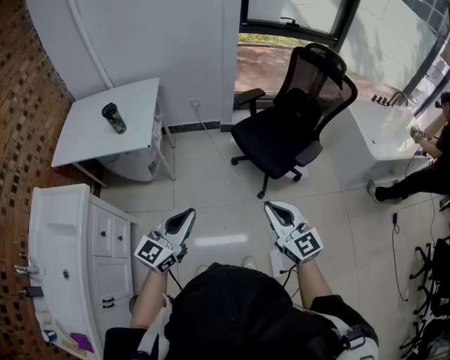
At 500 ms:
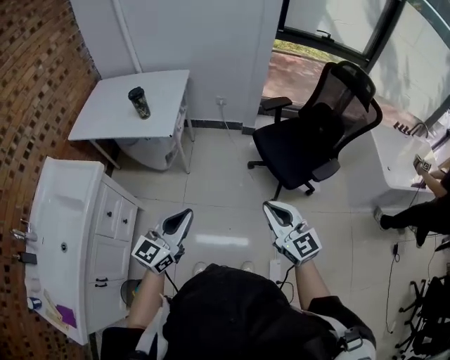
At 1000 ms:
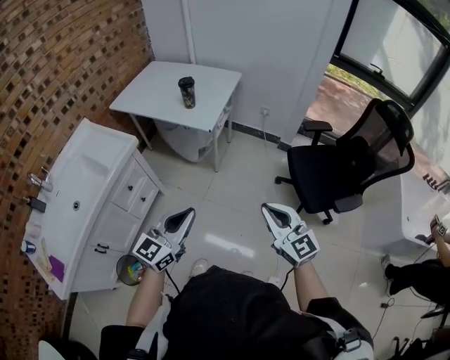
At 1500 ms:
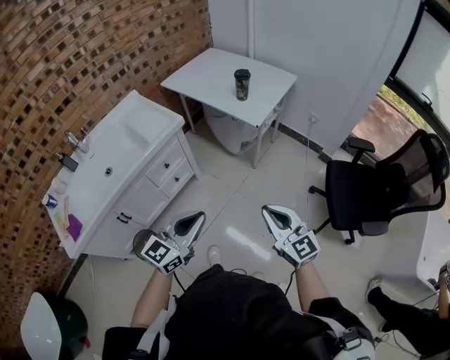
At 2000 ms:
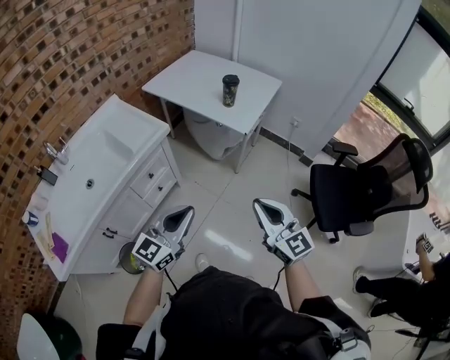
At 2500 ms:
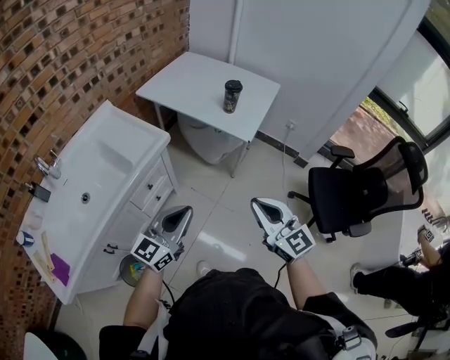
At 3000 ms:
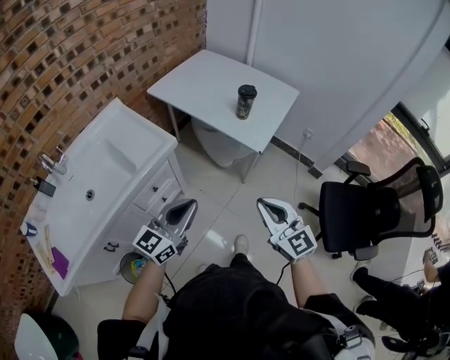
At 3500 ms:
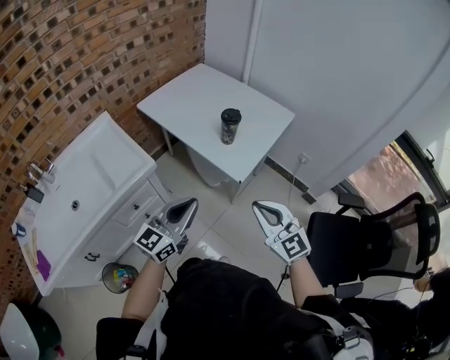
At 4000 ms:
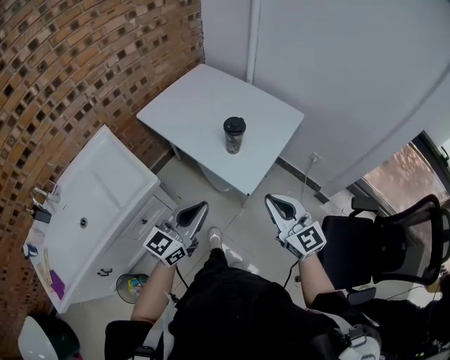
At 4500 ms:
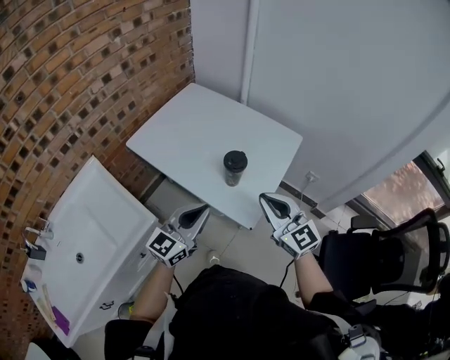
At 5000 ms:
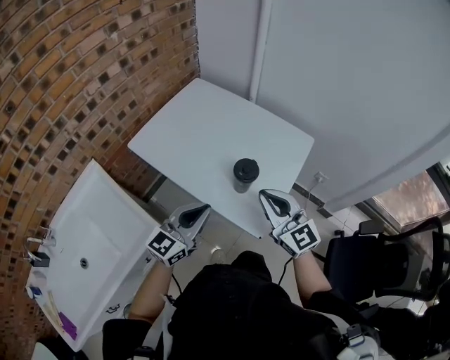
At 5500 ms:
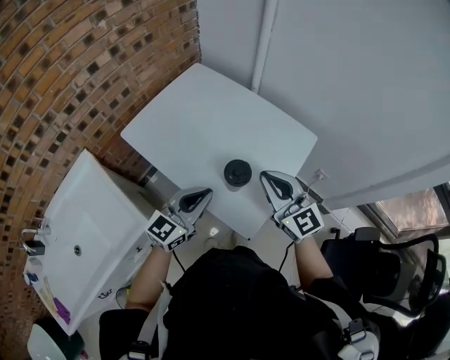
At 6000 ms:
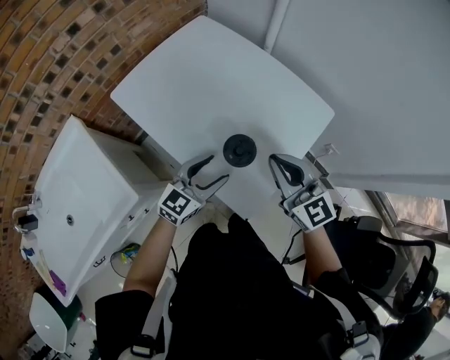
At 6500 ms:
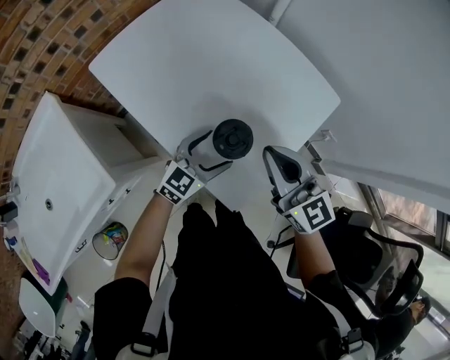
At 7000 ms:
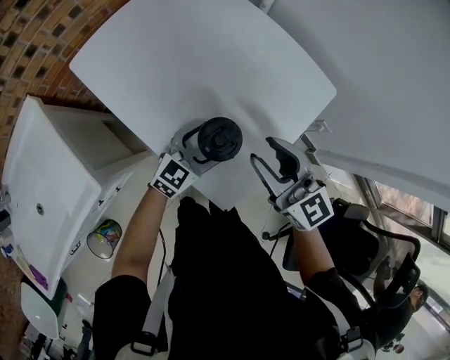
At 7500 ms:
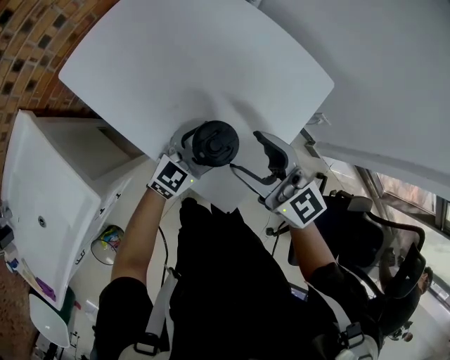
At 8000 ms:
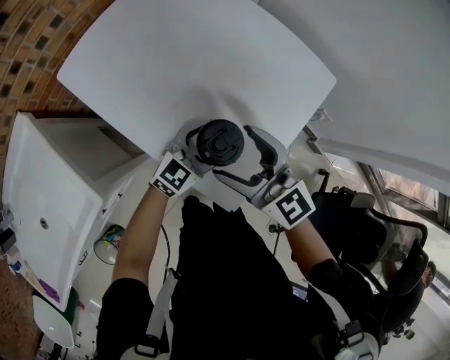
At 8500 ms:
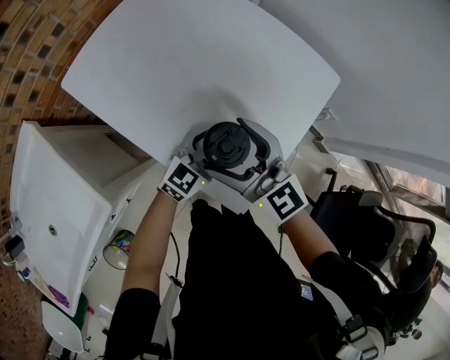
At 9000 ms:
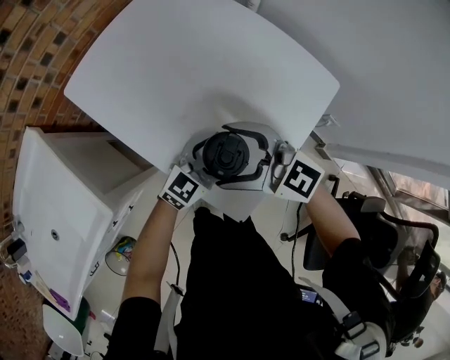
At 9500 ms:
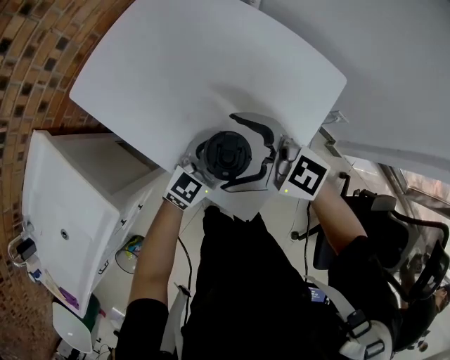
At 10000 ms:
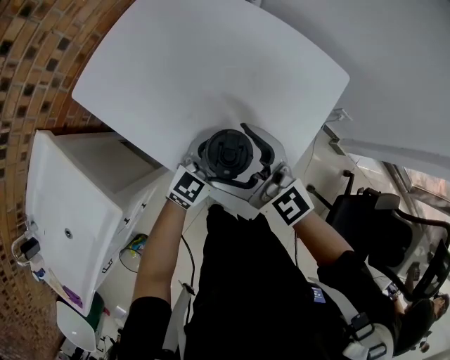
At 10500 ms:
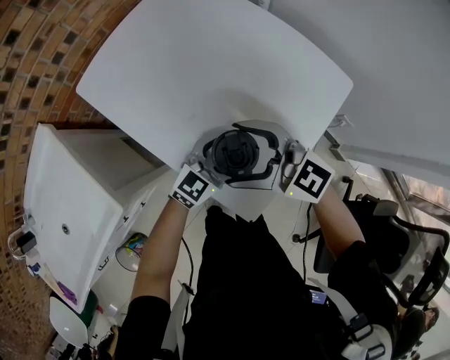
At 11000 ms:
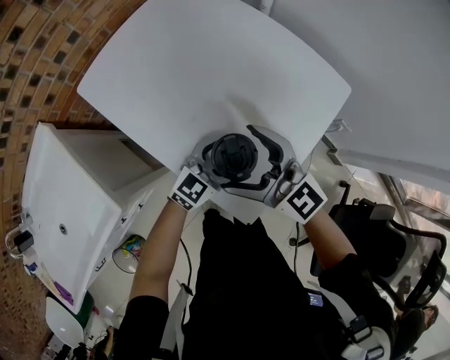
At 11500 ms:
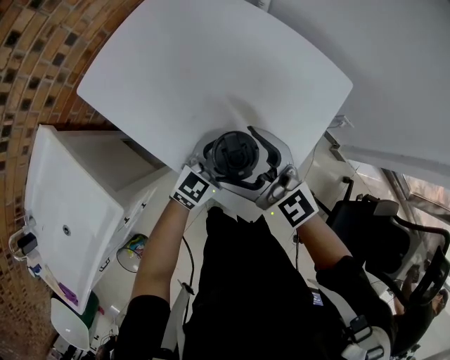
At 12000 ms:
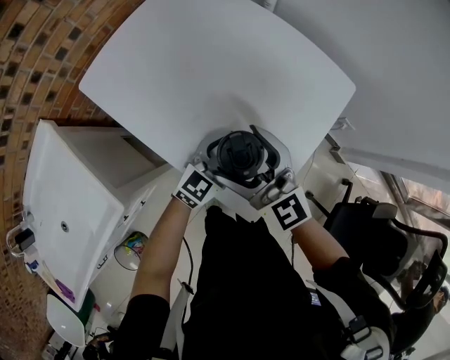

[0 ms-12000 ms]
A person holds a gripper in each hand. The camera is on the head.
0 ms to 2000 ms: The right gripper shifts by roughly 25 cm, and changes its angle by approximately 40 degrees, while the left gripper changes place by some 20 cm, and turns by approximately 40 degrees.
2000 ms to 4000 ms: Both grippers move forward, some 35 cm.
4000 ms to 6000 ms: The right gripper goes approximately 30 cm forward. Meanwhile the left gripper shifts about 30 cm forward and downward, and opens its fingers.
6000 ms to 8000 ms: The left gripper moves downward and to the right, approximately 10 cm. The right gripper shifts about 10 cm downward and to the left, and opens.

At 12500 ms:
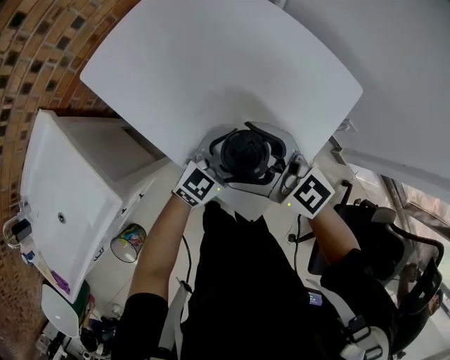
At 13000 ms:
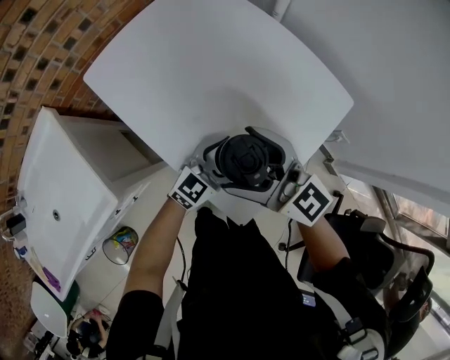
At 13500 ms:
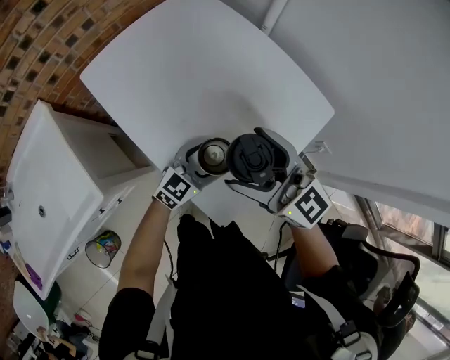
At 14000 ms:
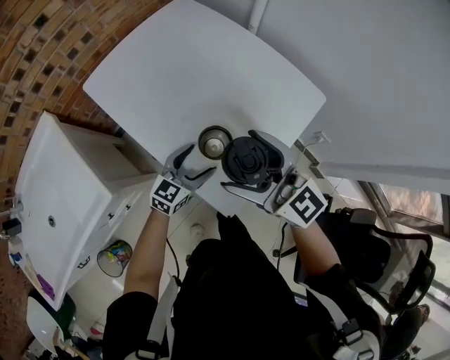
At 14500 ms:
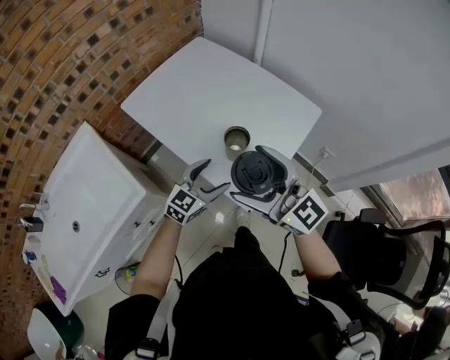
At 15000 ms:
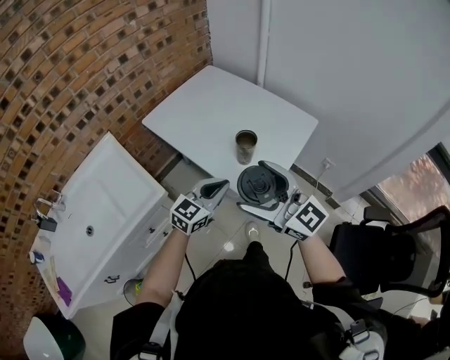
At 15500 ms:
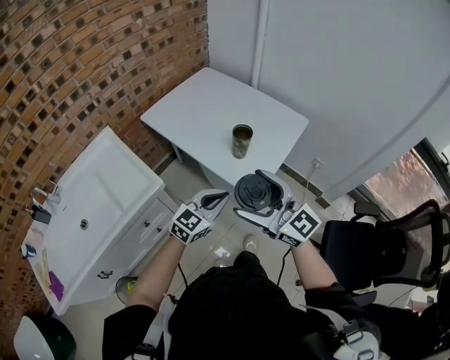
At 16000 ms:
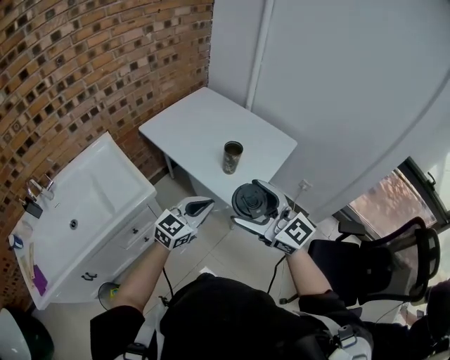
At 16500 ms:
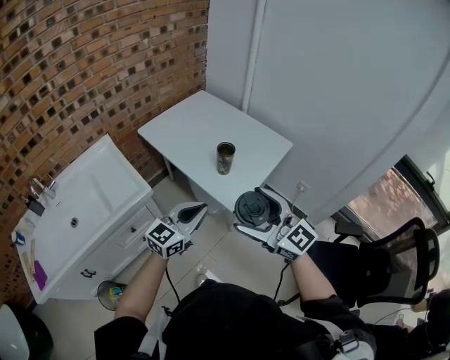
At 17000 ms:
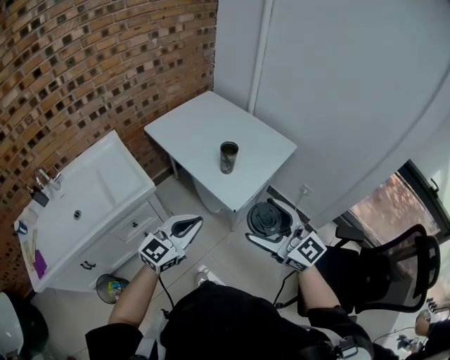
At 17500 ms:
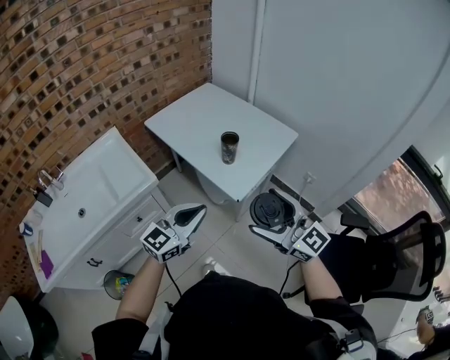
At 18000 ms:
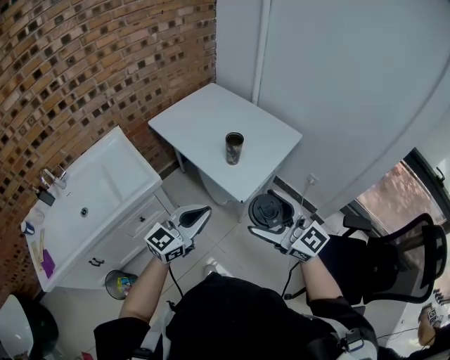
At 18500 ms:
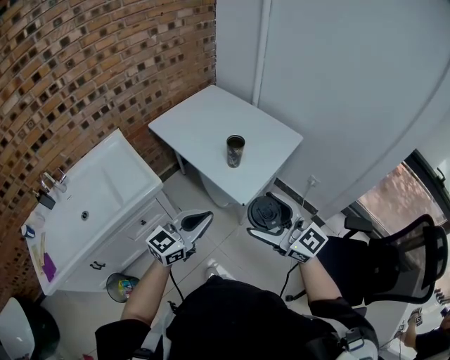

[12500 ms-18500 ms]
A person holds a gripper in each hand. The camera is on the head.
12500 ms to 14500 ms: The right gripper moves upward and backward, about 20 cm, while the left gripper travels backward, upward and to the left by about 15 cm.
14500 ms to 16500 ms: The left gripper is displaced backward and upward by approximately 25 cm, and closes; the right gripper heads backward, covering roughly 20 cm.
16500 ms to 18500 ms: The left gripper heads backward, covering roughly 5 cm.

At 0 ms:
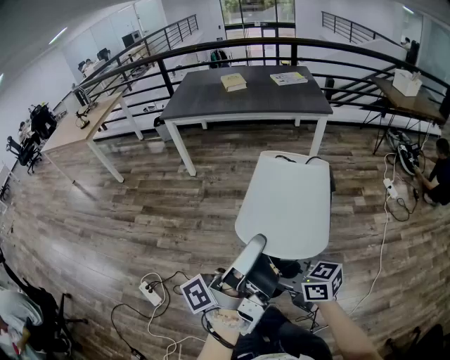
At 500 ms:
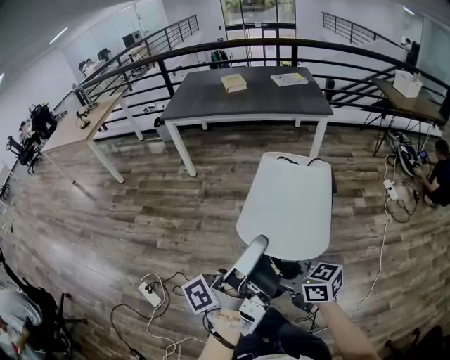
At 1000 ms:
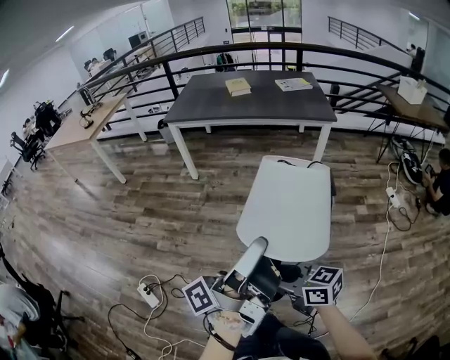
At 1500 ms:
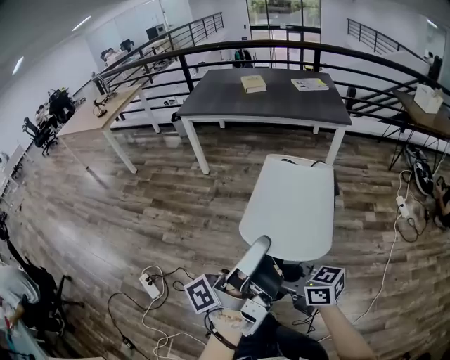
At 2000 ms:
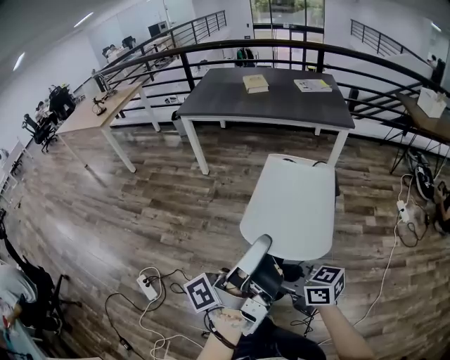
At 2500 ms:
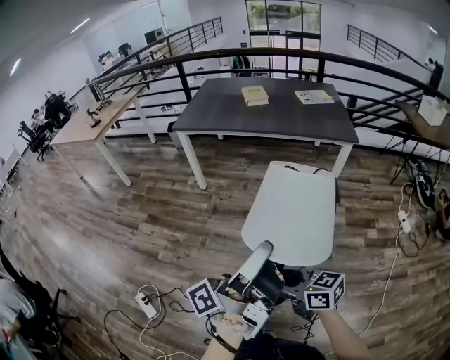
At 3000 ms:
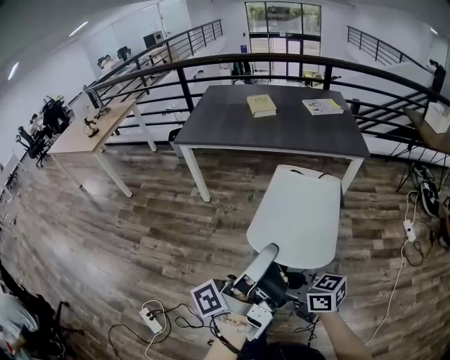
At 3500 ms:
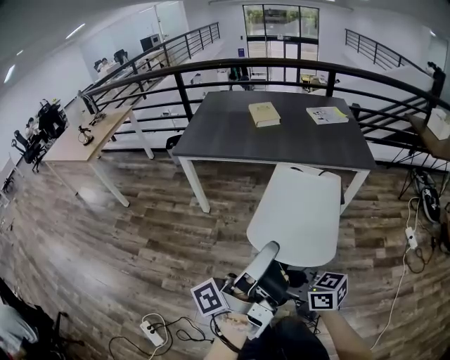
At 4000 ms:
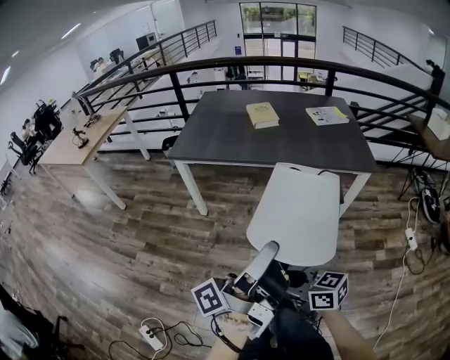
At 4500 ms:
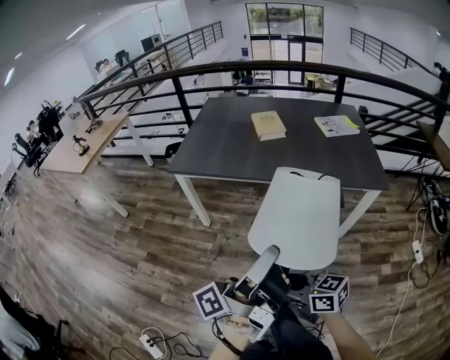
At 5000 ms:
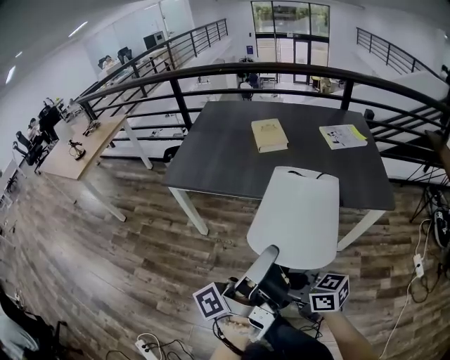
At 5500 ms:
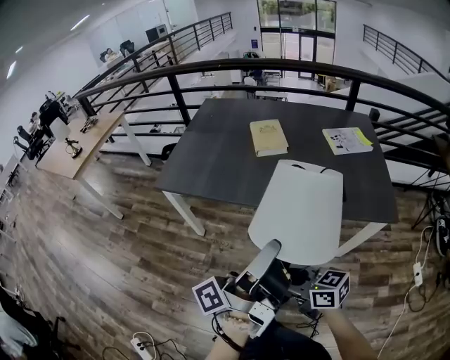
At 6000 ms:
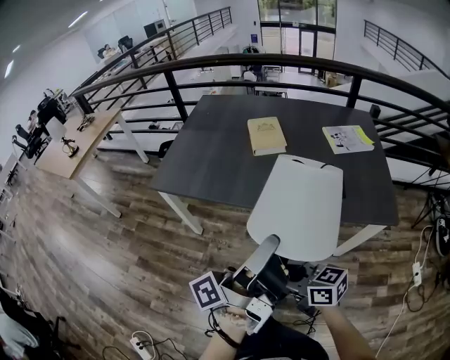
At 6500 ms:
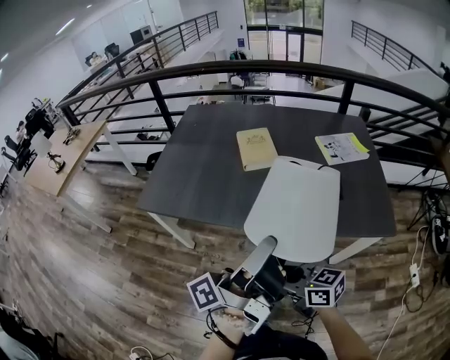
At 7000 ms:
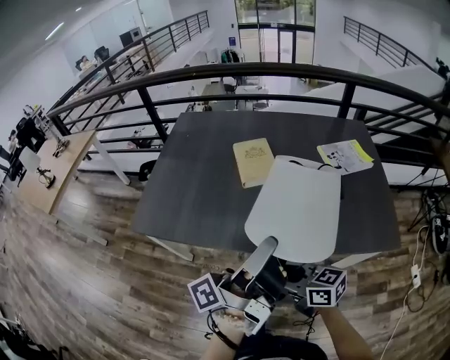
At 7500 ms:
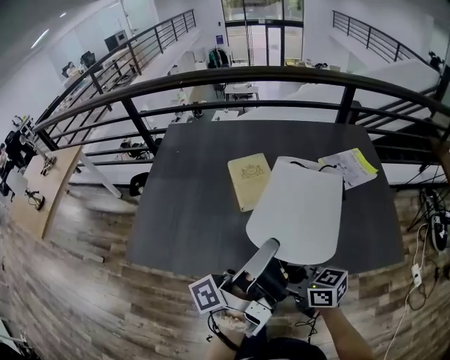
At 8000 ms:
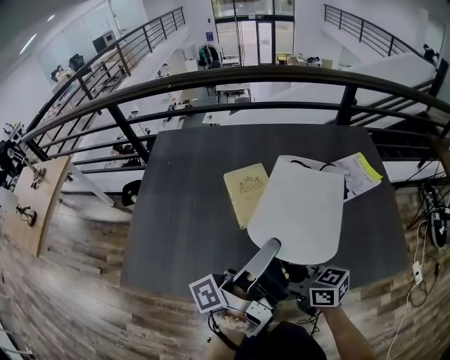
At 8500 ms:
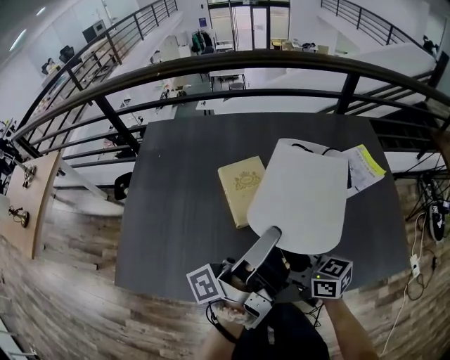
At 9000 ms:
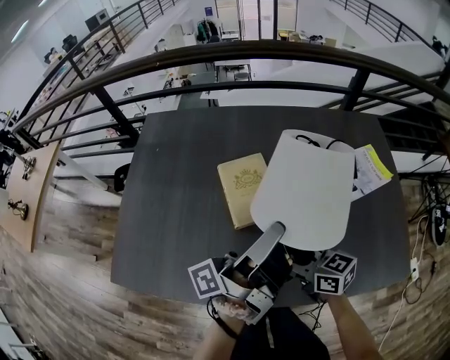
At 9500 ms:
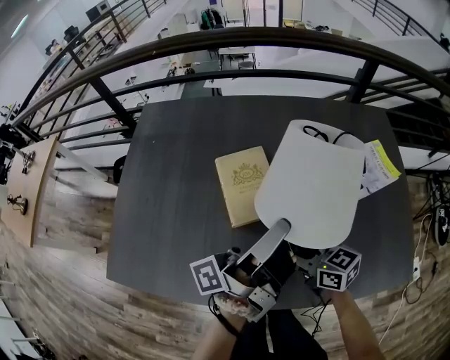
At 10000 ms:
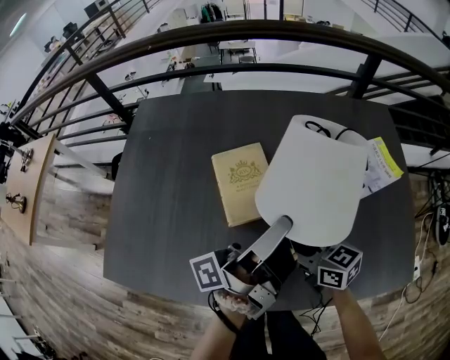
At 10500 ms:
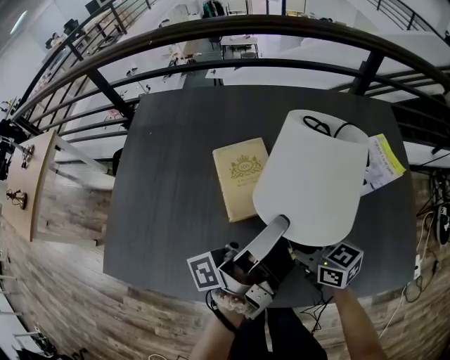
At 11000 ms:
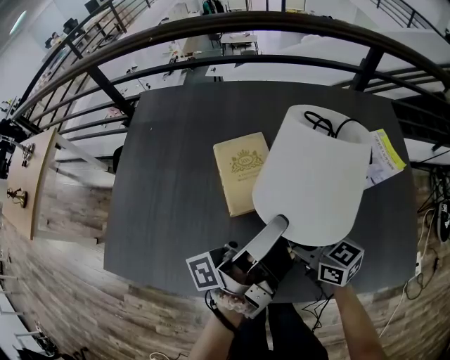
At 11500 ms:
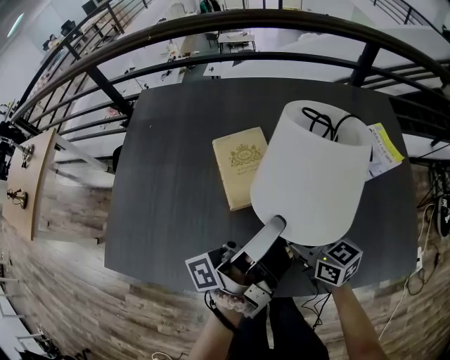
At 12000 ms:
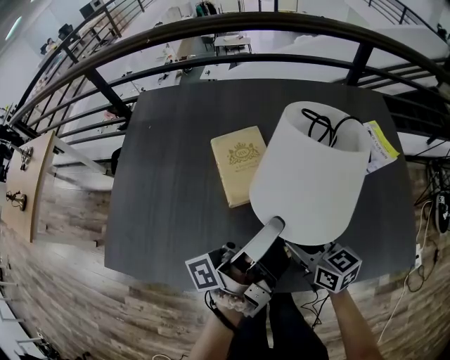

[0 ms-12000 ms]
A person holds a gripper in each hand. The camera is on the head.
0 ms to 2000 ms: The right gripper changes place by about 5 cm.
2000 ms to 4000 ms: The right gripper changes place by some 35 cm.
4000 ms to 6000 ms: The right gripper changes place by some 35 cm.
6000 ms to 8000 ms: The right gripper moves some 35 cm.
8000 ms to 10000 ms: The right gripper moves some 15 cm.
10000 ms to 12000 ms: The right gripper changes place by approximately 5 cm.
